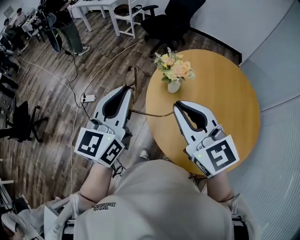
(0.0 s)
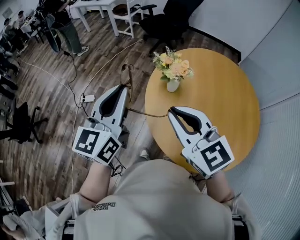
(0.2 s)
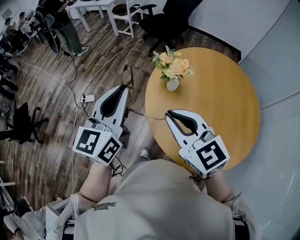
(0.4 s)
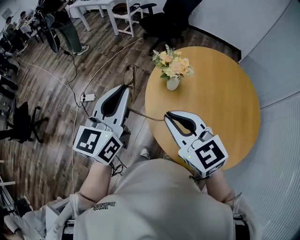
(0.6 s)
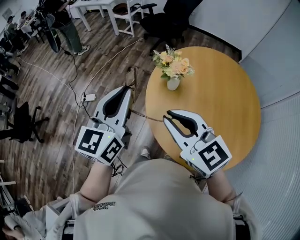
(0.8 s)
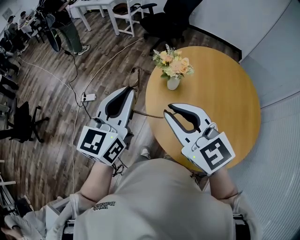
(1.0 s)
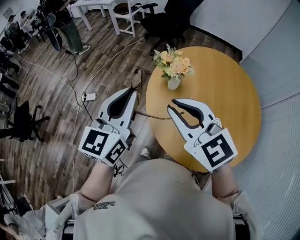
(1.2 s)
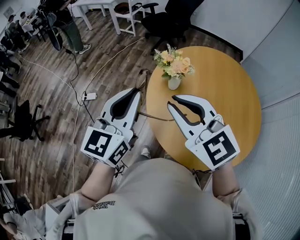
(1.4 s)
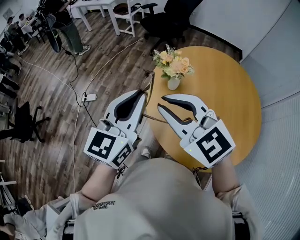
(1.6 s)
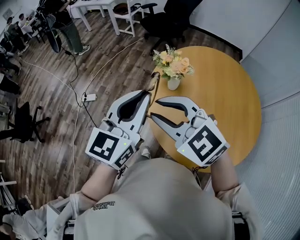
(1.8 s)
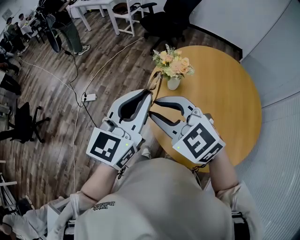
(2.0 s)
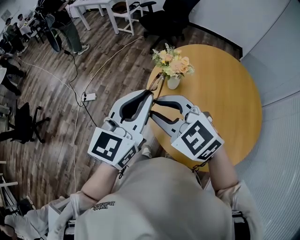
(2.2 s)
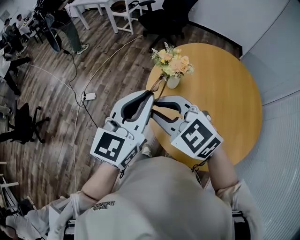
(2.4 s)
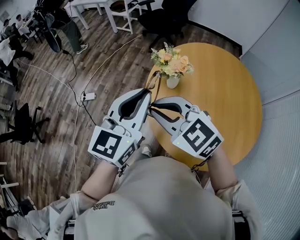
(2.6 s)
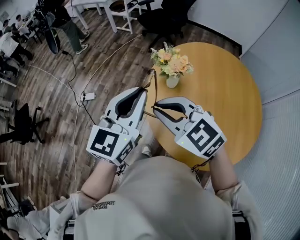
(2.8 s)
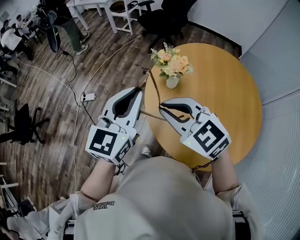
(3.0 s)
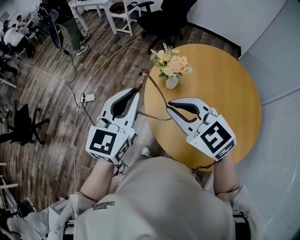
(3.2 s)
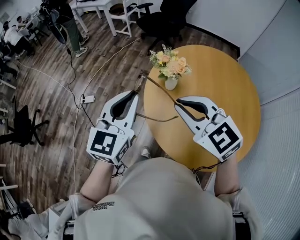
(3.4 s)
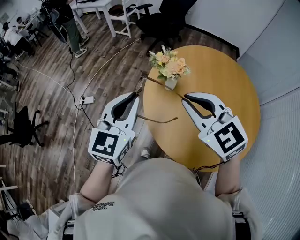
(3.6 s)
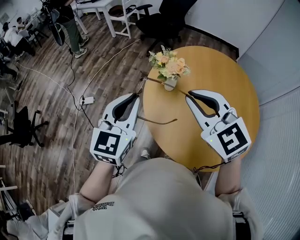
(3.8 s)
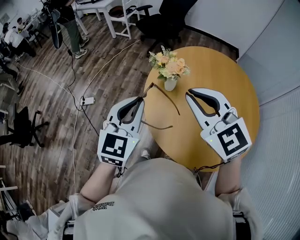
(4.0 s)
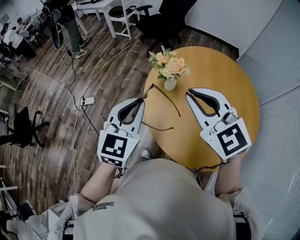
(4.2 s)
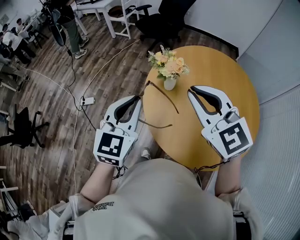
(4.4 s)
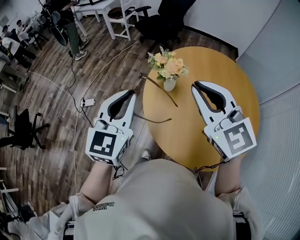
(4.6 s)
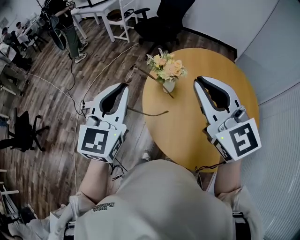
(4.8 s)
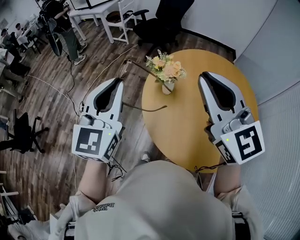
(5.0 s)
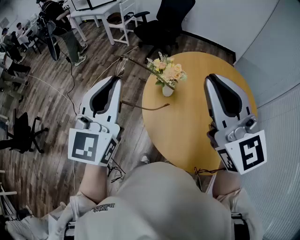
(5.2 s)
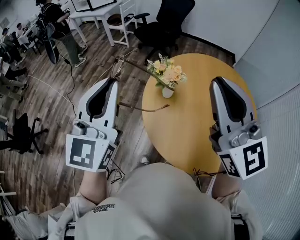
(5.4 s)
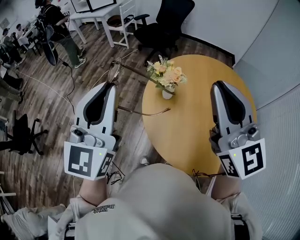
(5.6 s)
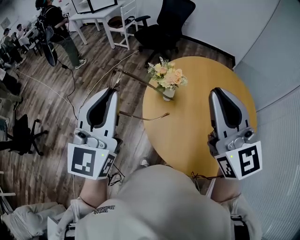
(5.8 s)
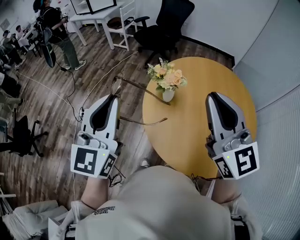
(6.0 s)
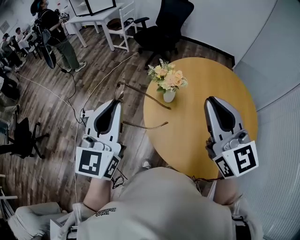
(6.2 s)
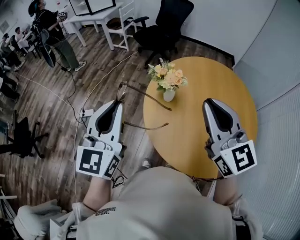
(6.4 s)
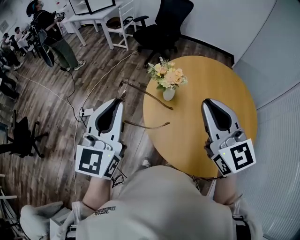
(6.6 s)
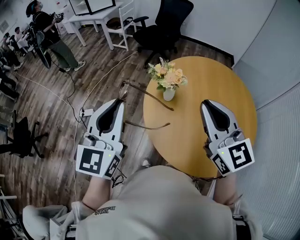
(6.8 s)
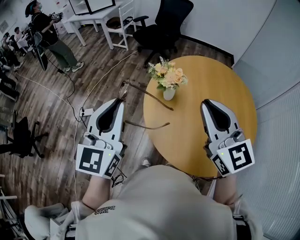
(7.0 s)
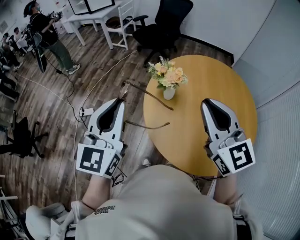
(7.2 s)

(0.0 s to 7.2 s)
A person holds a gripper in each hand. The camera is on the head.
1.4 s - 2.8 s: The right gripper goes approximately 5 cm downward.
2.8 s - 4.4 s: The right gripper travels to the right and upward by some 15 cm, and rotates approximately 20 degrees.
4.4 s - 5.8 s: Both grippers move upward, roughly 10 cm. The left gripper changes its angle by approximately 20 degrees; the right gripper changes its angle by some 30 degrees.
5.8 s - 7.2 s: Both grippers move downward, approximately 5 cm.

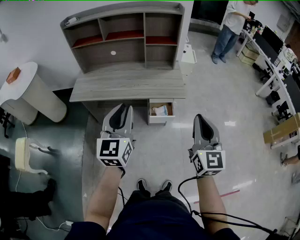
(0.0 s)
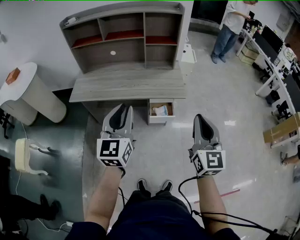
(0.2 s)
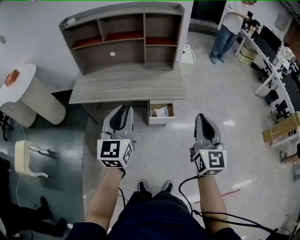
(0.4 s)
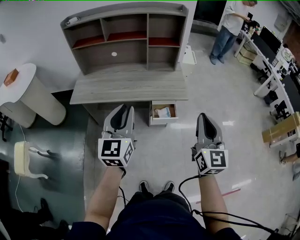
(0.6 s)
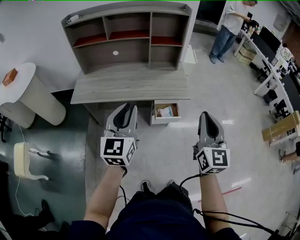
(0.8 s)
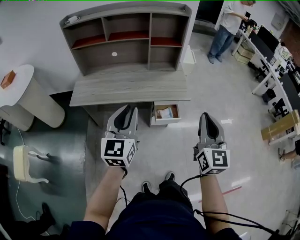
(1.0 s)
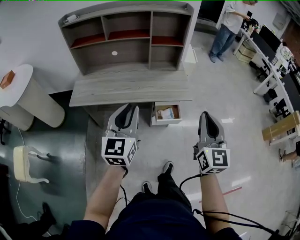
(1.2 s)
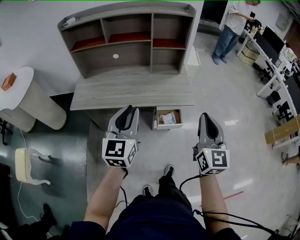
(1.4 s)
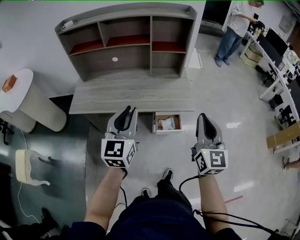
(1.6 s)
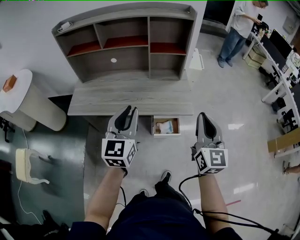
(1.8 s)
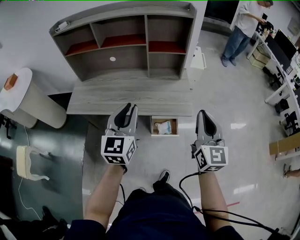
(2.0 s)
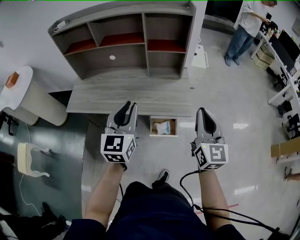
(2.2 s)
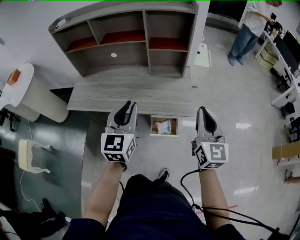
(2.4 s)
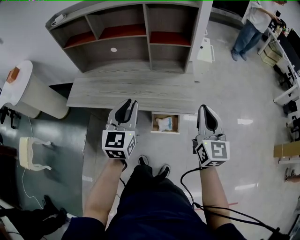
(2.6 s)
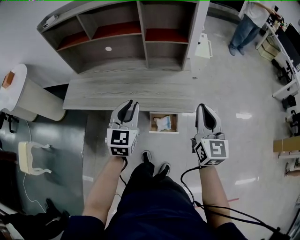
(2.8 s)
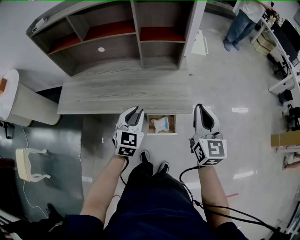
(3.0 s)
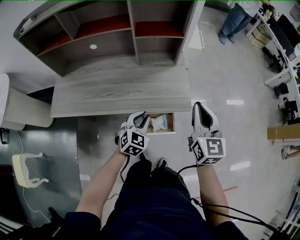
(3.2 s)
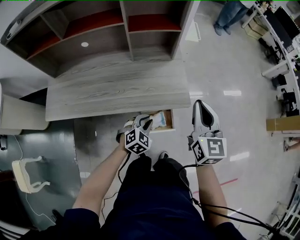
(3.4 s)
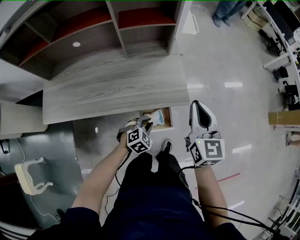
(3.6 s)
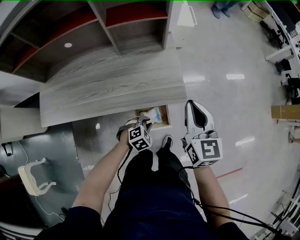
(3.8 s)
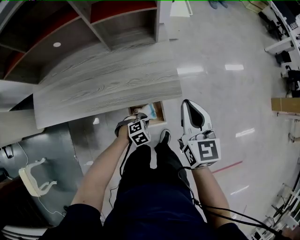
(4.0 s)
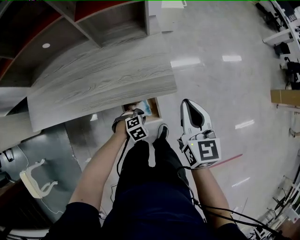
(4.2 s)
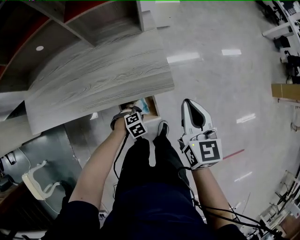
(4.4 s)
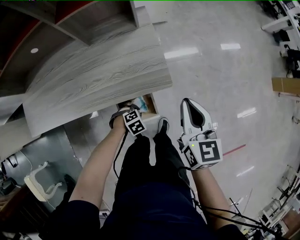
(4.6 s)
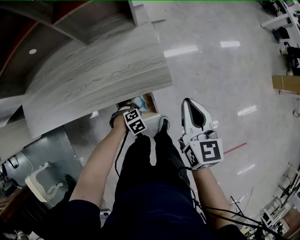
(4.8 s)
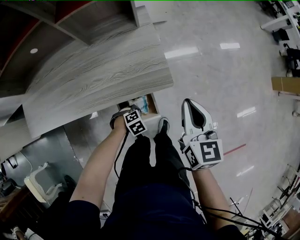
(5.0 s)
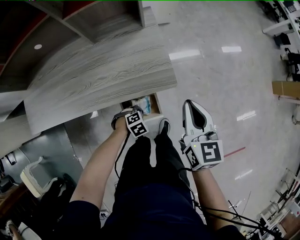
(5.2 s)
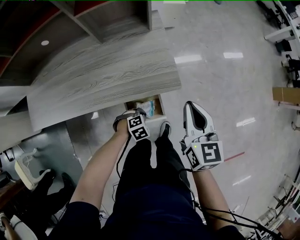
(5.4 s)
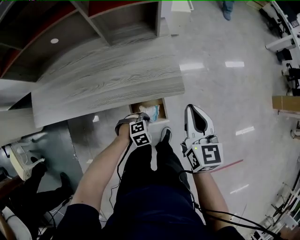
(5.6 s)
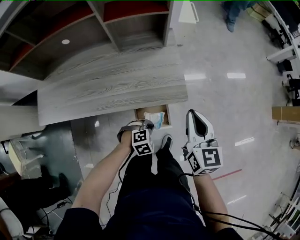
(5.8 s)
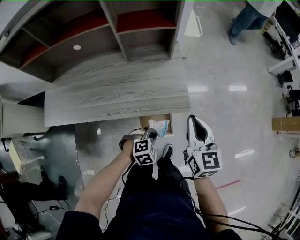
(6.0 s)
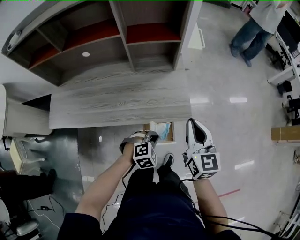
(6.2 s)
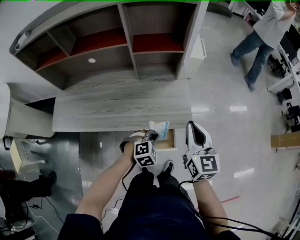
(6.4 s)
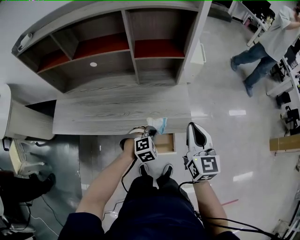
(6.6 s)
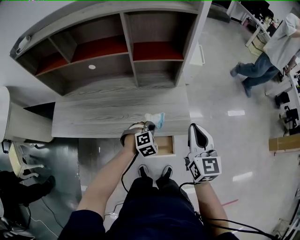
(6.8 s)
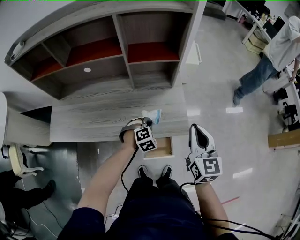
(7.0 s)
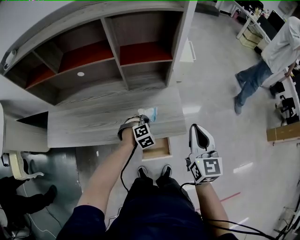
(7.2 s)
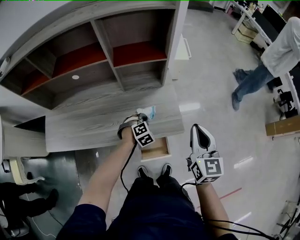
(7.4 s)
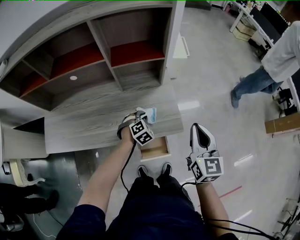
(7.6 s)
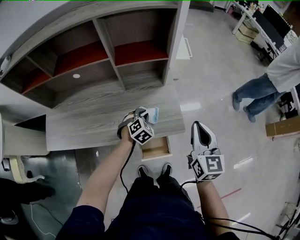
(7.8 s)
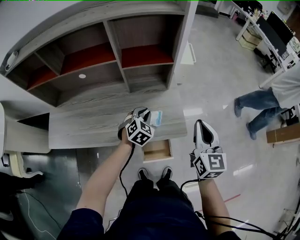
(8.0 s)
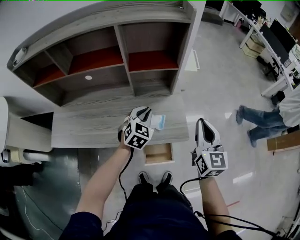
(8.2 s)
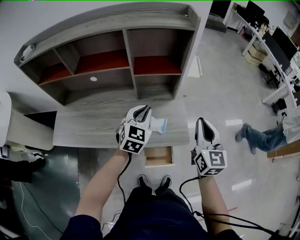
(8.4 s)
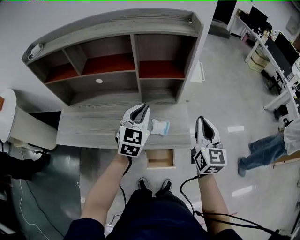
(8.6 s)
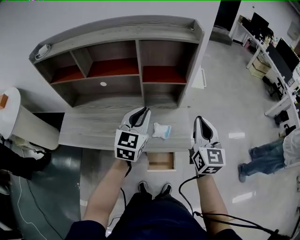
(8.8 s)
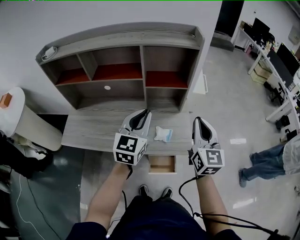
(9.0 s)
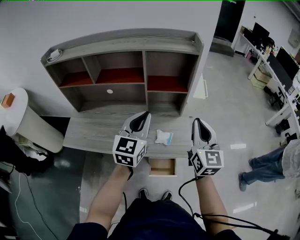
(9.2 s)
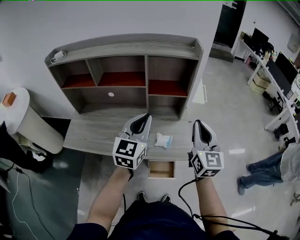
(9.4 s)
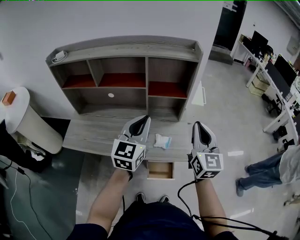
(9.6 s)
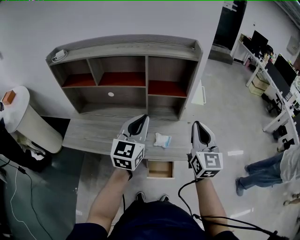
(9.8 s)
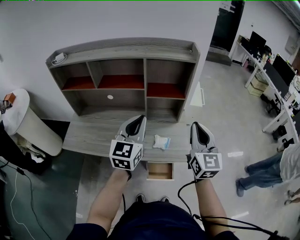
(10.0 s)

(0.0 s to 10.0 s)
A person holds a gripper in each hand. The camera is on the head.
0.0 s - 1.4 s: Both grippers move forward, about 5 cm.
1.4 s - 2.8 s: The right gripper moves forward and to the right, some 20 cm. The left gripper travels forward, downward and to the right by approximately 20 cm.
2.8 s - 4.2 s: The left gripper goes roughly 40 cm downward, and points its fingers about 60 degrees further downward, while the right gripper is displaced downward by about 15 cm, and swivels about 20 degrees.
4.2 s - 5.8 s: The left gripper moves upward, some 5 cm.
5.8 s - 7.2 s: The left gripper moves forward, to the left and upward, some 20 cm, and rotates about 20 degrees, while the right gripper travels upward and forward by some 10 cm.
7.2 s - 8.6 s: The left gripper shifts roughly 30 cm upward, and tips its fingers upward by some 40 degrees. The right gripper is displaced upward by some 5 cm.
8.6 s - 10.0 s: The right gripper travels upward by some 10 cm, while the left gripper goes approximately 15 cm upward and backward.

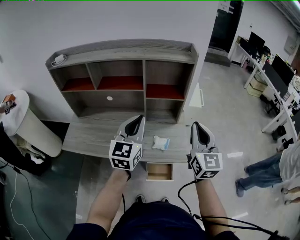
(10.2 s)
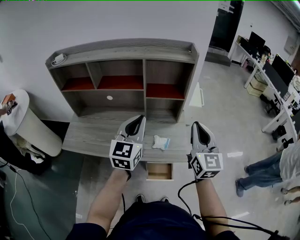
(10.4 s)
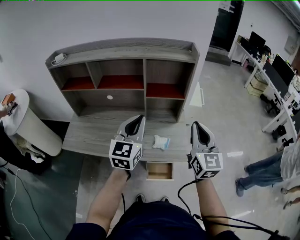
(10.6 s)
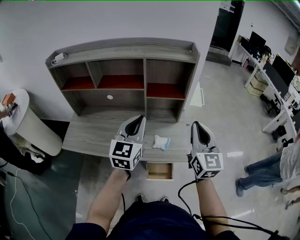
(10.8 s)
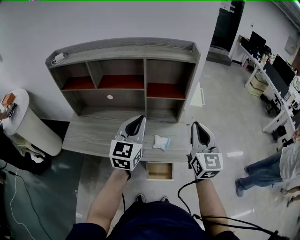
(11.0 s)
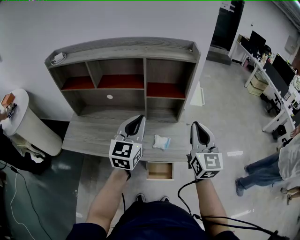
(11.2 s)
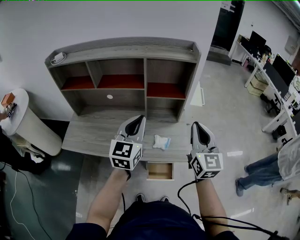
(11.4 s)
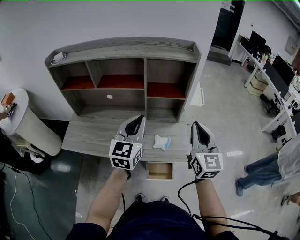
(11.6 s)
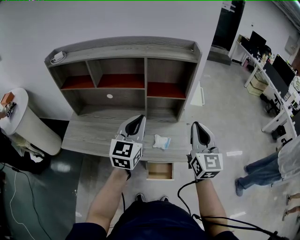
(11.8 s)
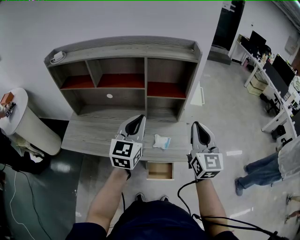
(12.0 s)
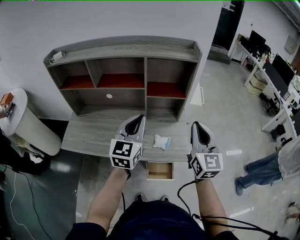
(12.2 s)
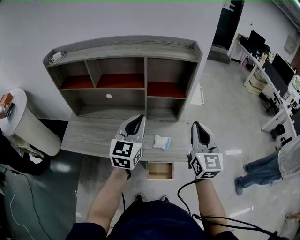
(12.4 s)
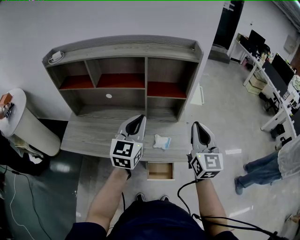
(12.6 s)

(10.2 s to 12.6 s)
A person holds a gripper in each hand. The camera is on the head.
10.2 s - 11.4 s: Neither gripper changes place.
11.4 s - 12.6 s: There are only small adjustments of the grippers.

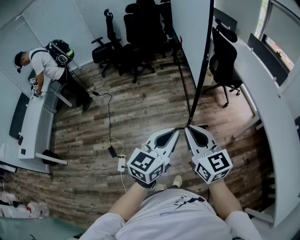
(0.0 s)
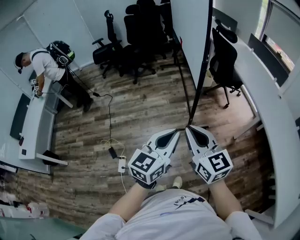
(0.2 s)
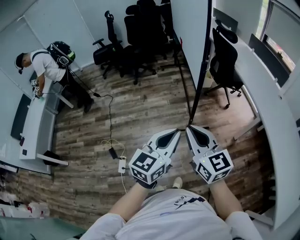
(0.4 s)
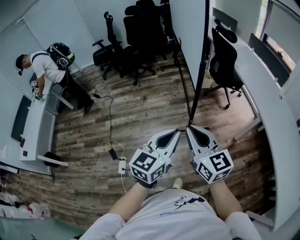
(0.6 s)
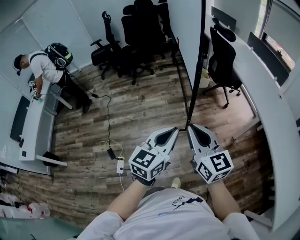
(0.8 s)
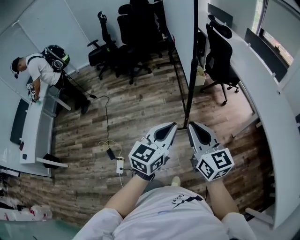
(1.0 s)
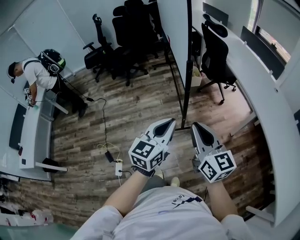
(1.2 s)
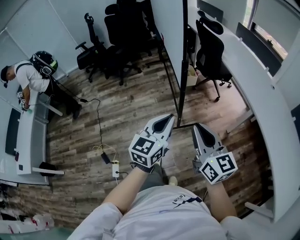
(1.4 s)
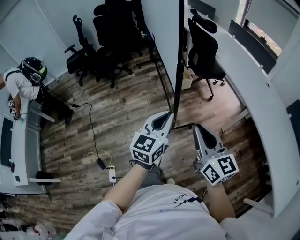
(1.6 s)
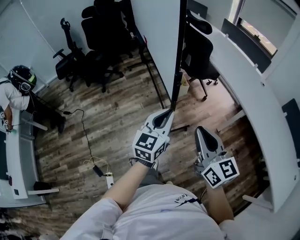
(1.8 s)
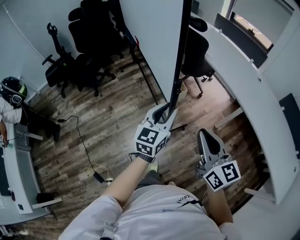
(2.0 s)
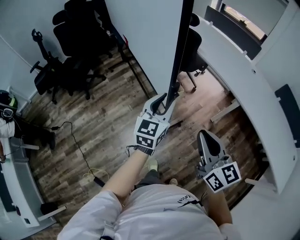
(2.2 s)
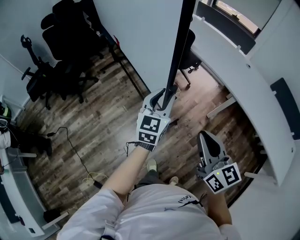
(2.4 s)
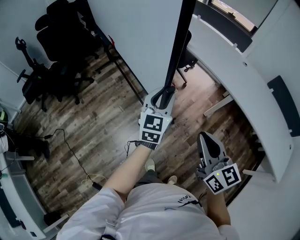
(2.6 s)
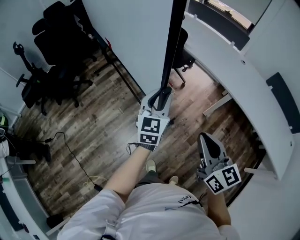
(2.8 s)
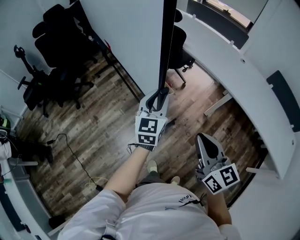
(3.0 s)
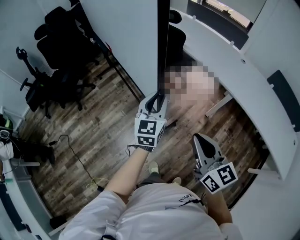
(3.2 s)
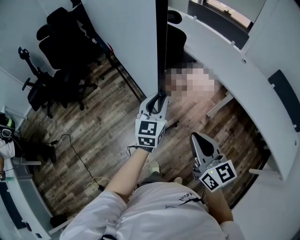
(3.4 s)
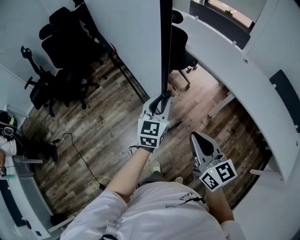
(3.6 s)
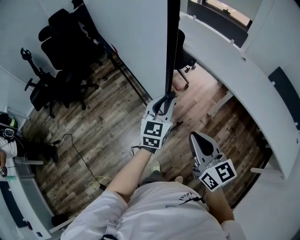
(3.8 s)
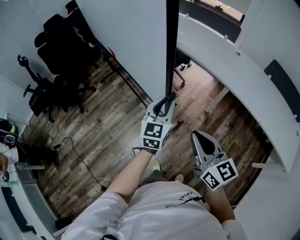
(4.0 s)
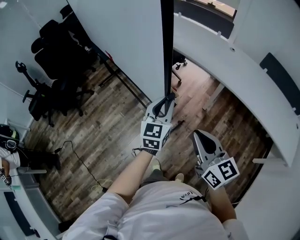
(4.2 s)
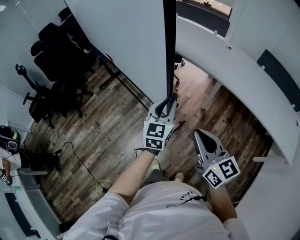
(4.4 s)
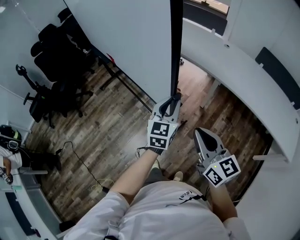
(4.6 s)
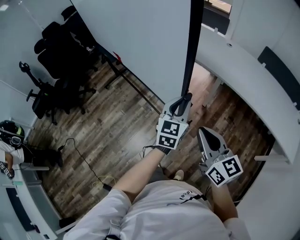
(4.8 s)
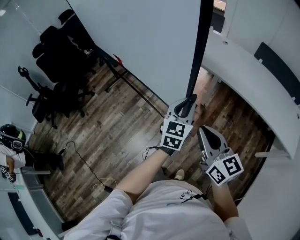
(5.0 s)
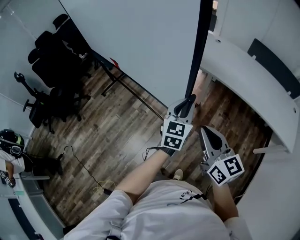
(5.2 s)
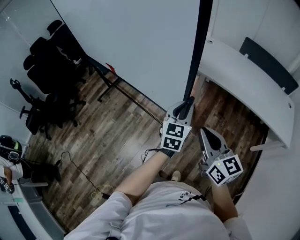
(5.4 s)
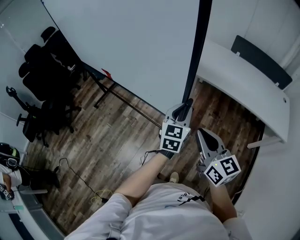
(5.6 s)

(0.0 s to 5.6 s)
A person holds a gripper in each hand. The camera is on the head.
0.0 s - 1.4 s: The left gripper shifts roughly 15 cm forward and to the right, while the right gripper heads to the right and forward, covering about 15 cm.
1.4 s - 2.8 s: The right gripper travels forward by approximately 15 cm, and turns by some 30 degrees, while the left gripper heads forward, covering roughly 35 cm, and opens.
2.8 s - 4.2 s: Both grippers move to the right and backward, some 10 cm.
4.2 s - 5.6 s: Both grippers move to the right and backward, about 20 cm.
